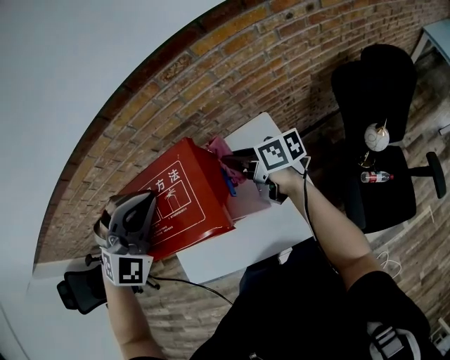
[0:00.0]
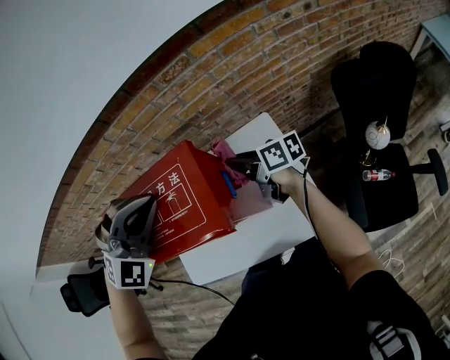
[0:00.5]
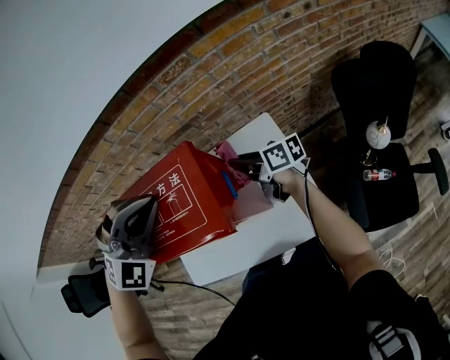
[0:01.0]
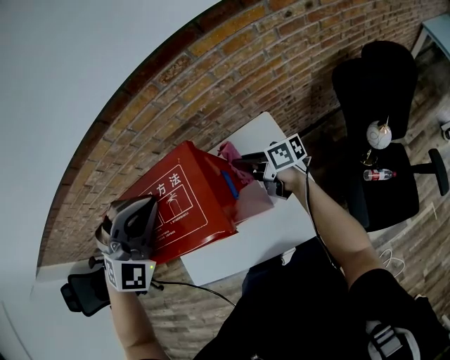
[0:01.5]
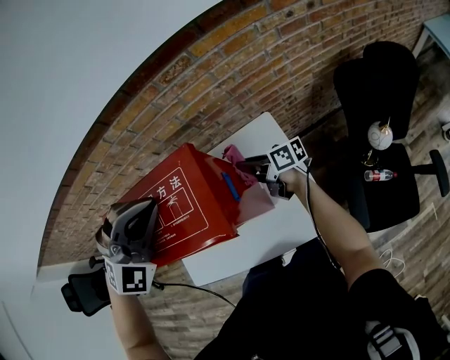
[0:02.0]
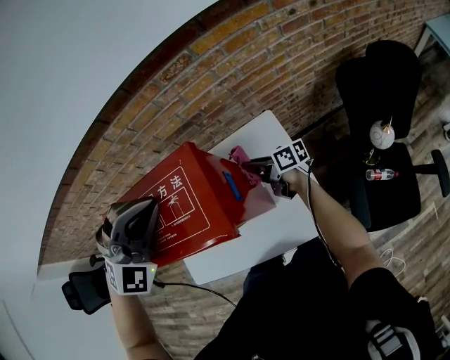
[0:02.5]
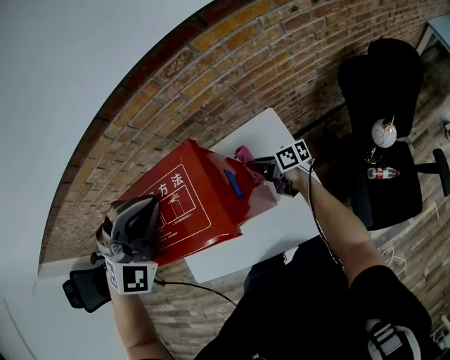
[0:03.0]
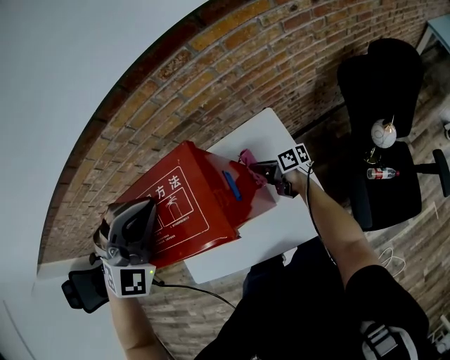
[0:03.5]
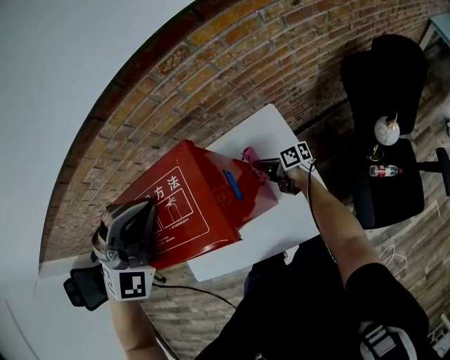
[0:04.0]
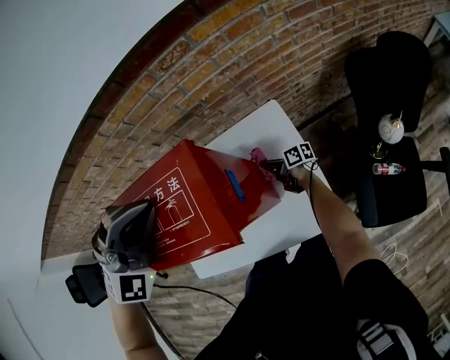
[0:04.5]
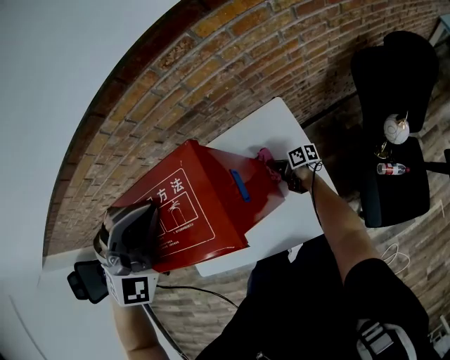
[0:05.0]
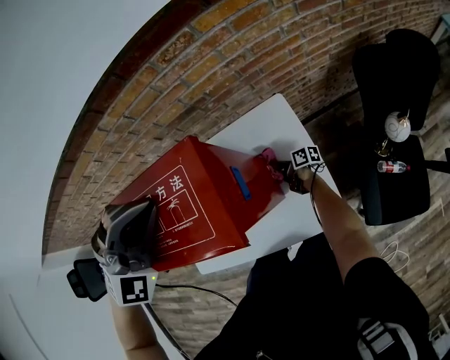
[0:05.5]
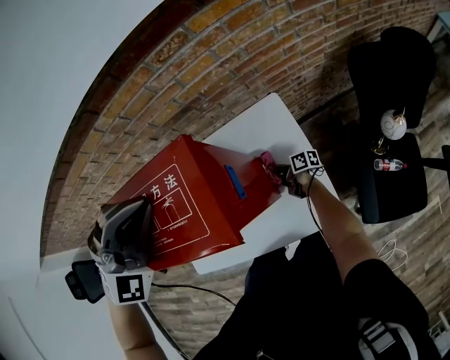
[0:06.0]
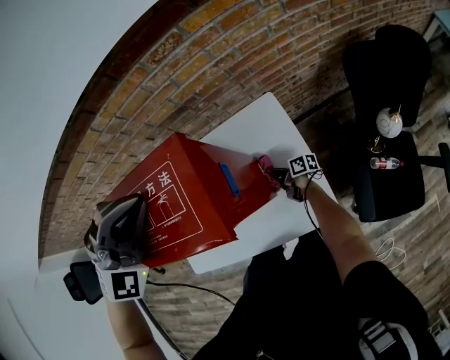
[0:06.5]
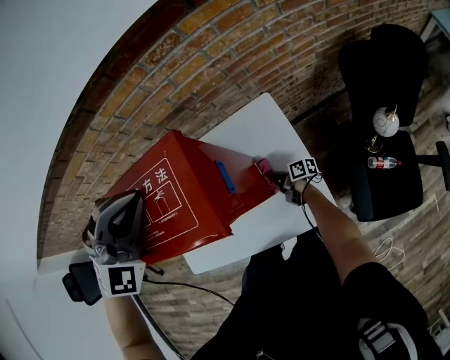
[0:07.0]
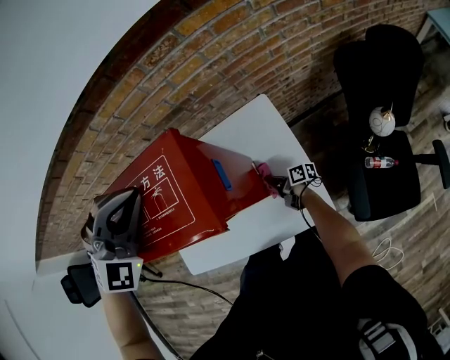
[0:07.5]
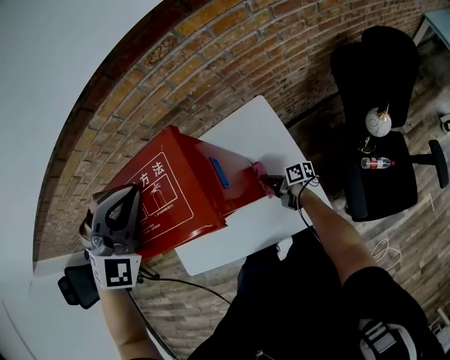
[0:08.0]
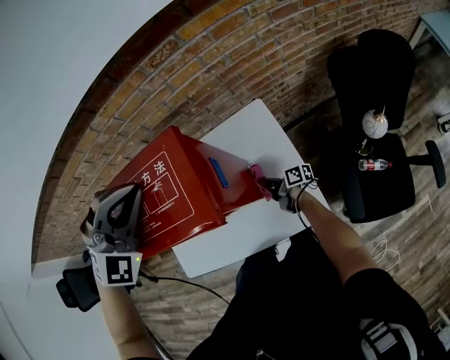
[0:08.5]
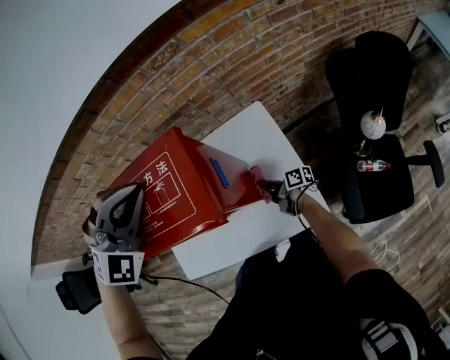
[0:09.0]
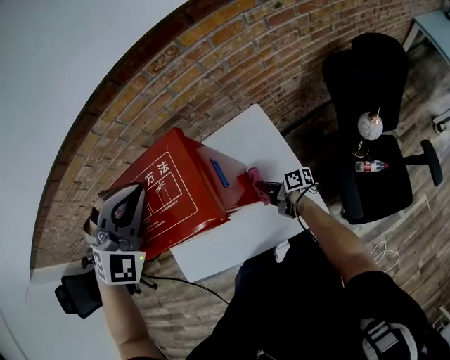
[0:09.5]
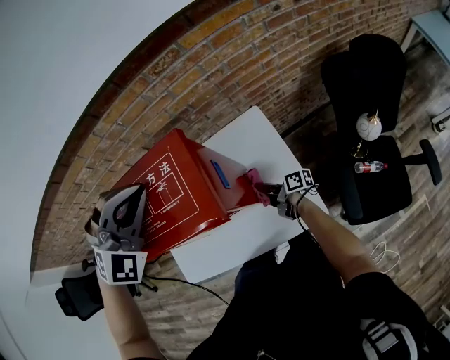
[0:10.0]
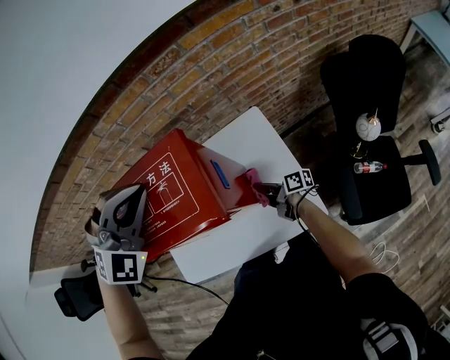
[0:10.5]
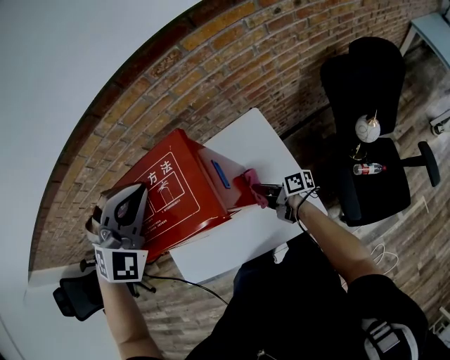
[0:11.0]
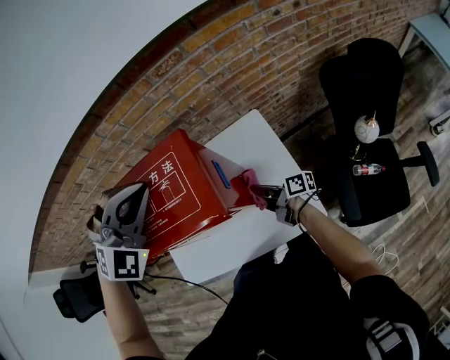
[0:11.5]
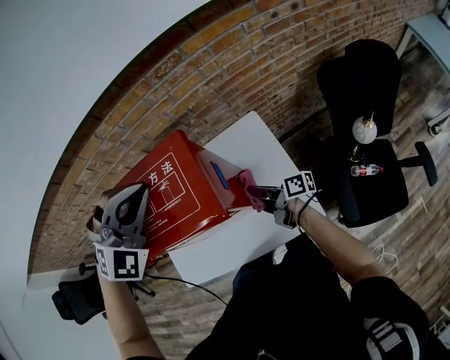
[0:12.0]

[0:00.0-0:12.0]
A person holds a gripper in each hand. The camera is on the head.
0:00.0 to 0:02.0: The right gripper shifts roughly 10 cm downward.
0:02.0 to 0:04.0: The right gripper is displaced downward by about 15 cm.
0:04.0 to 0:06.0: The right gripper shifts roughly 10 cm downward.
0:06.0 to 0:08.0: The right gripper shifts roughly 5 cm backward.
0:08.0 to 0:10.0: The right gripper goes approximately 5 cm upward.
0:10.0 to 0:12.0: The right gripper heads upward, covering roughly 10 cm.

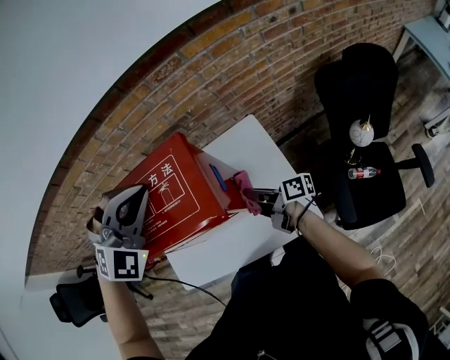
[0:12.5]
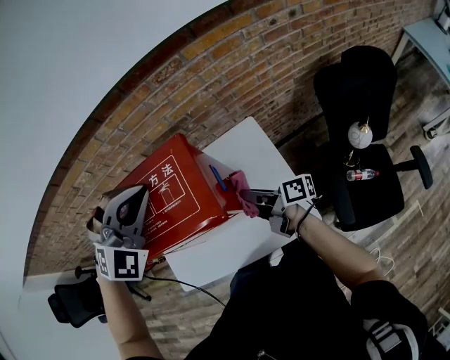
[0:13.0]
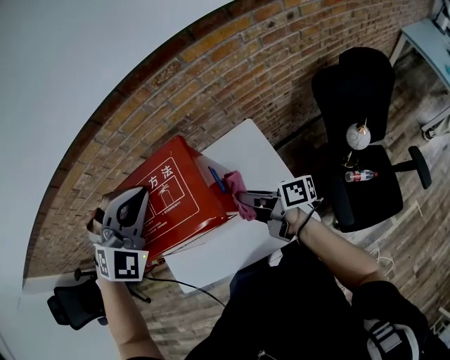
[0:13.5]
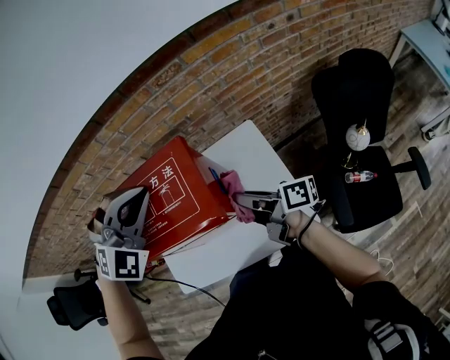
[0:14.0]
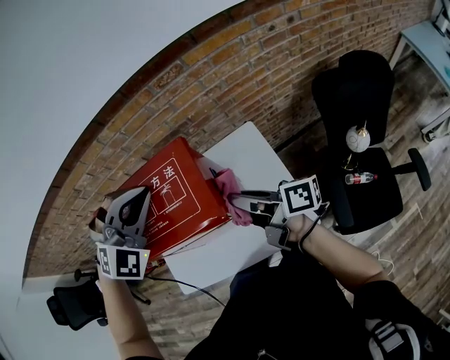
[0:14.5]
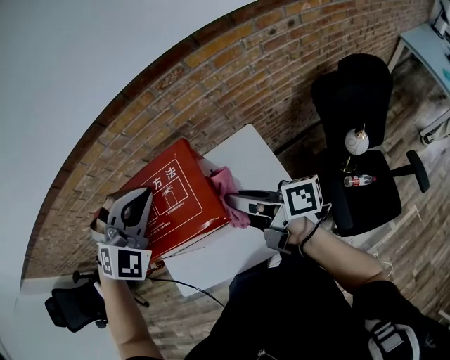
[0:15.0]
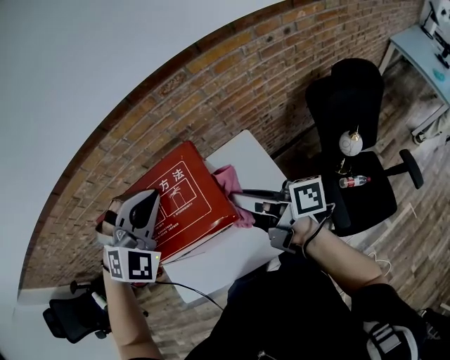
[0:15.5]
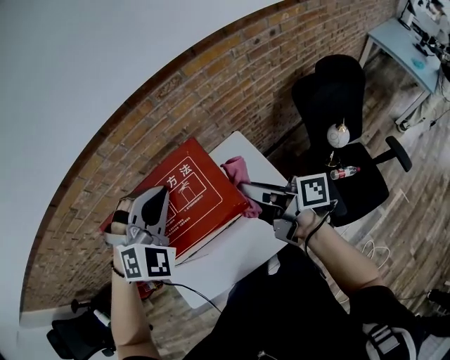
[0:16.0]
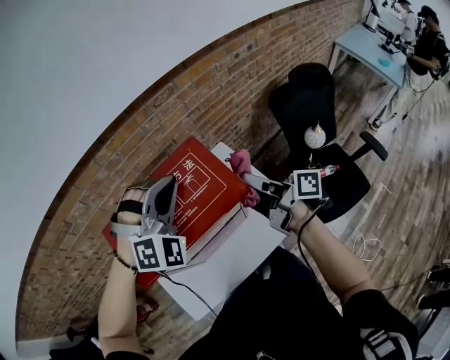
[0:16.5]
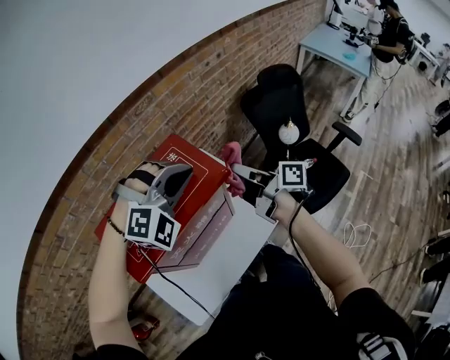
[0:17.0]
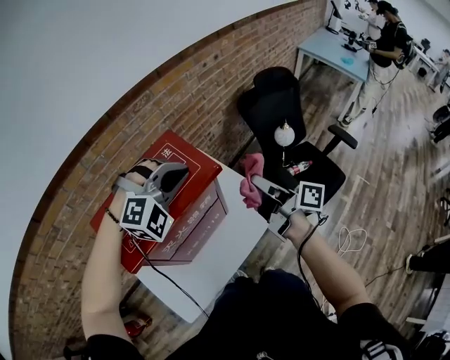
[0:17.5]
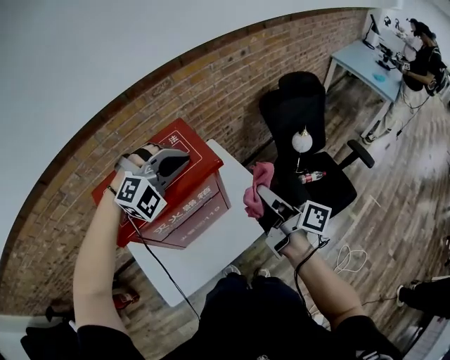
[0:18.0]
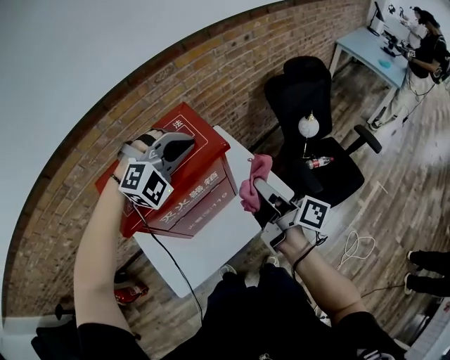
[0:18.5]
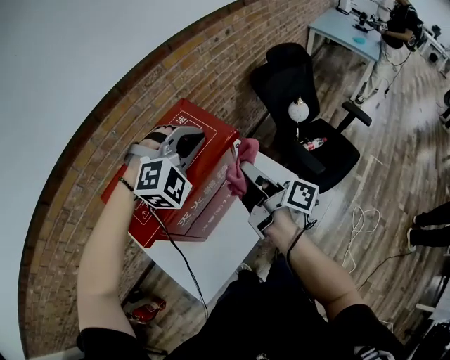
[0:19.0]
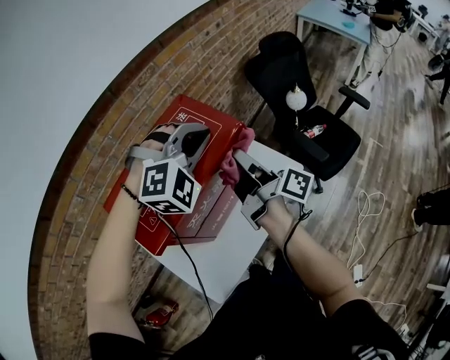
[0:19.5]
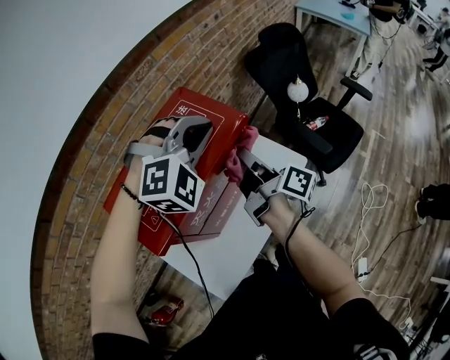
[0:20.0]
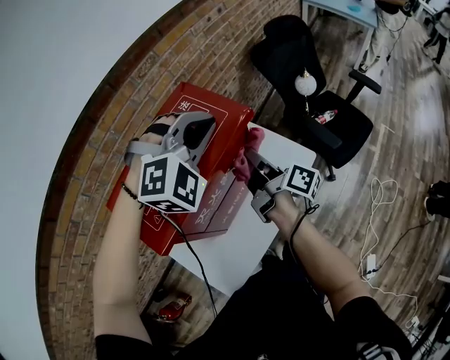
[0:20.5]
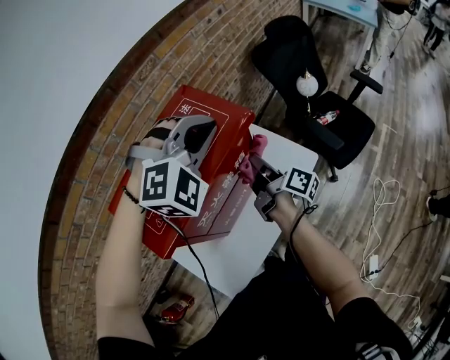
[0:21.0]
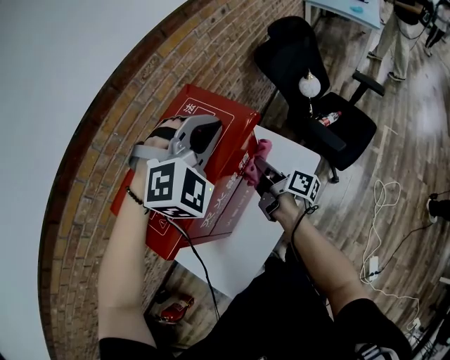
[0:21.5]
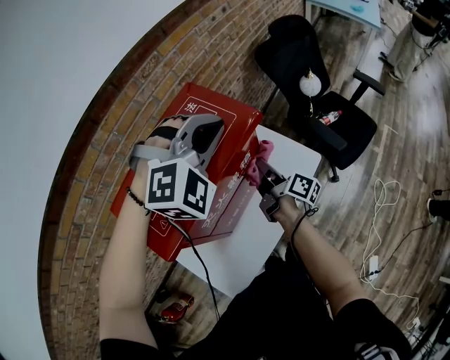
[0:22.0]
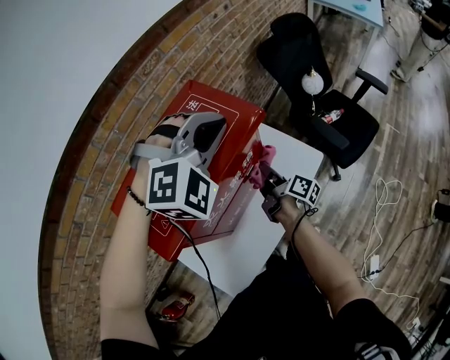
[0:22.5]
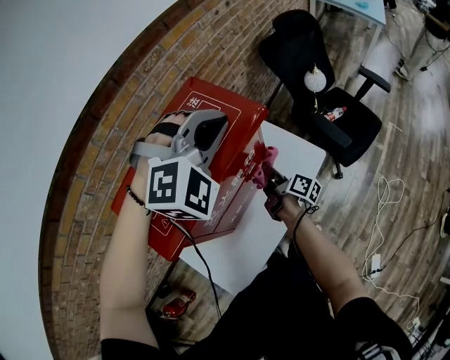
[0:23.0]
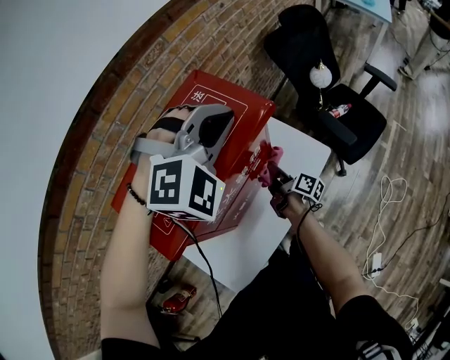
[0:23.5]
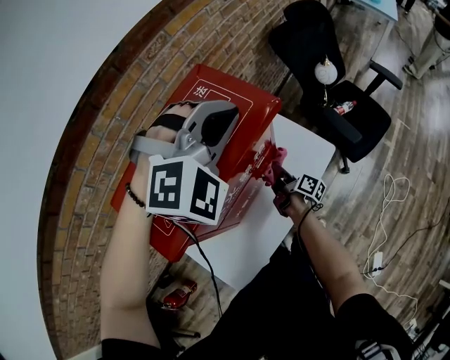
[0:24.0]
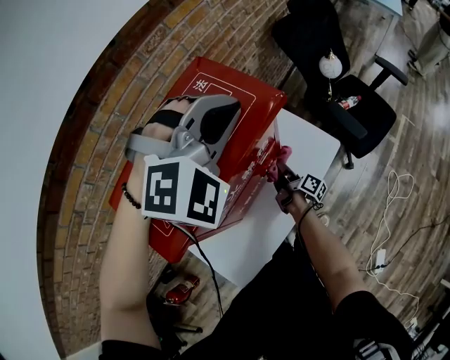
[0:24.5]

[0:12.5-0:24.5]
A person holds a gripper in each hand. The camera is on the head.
0:12.5 to 0:14.5: The right gripper moves upward, about 15 cm.
0:14.5 to 0:16.5: The right gripper is displaced upward by about 5 cm, and swivels some 30 degrees.
0:16.5 to 0:18.5: The right gripper shifts by roughly 15 cm, and changes its angle by roughly 20 degrees, while the left gripper ends up about 10 cm from where it was, and rotates roughly 30 degrees.
0:18.5 to 0:20.5: The right gripper heads to the left and downward, covering about 15 cm.
0:20.5 to 0:22.5: The right gripper goes roughly 15 cm downward.
0:22.5 to 0:24.5: The right gripper heads downward, covering approximately 15 cm.

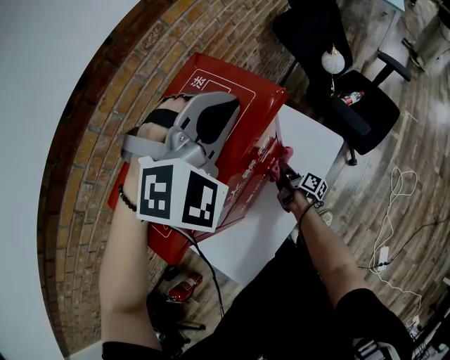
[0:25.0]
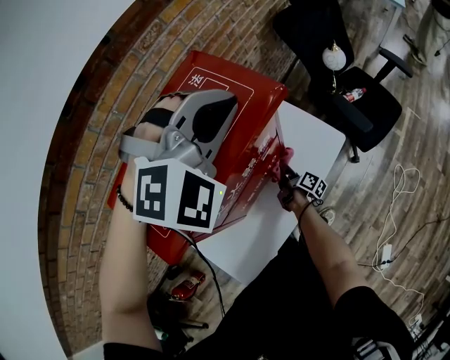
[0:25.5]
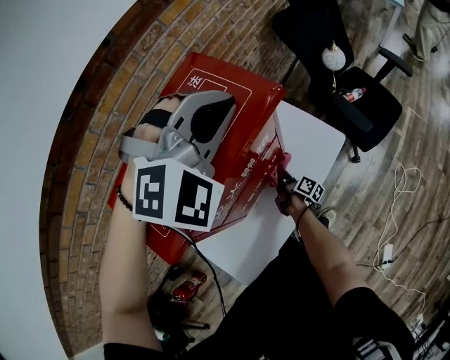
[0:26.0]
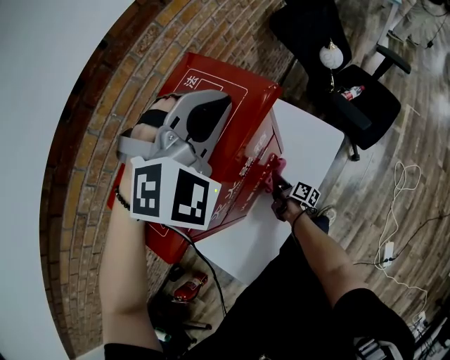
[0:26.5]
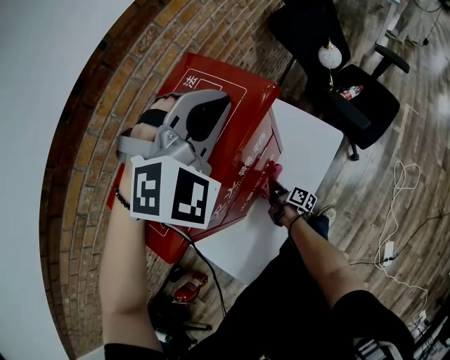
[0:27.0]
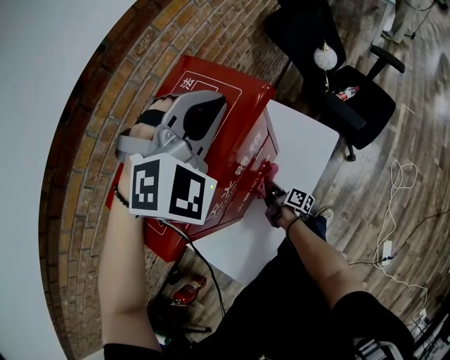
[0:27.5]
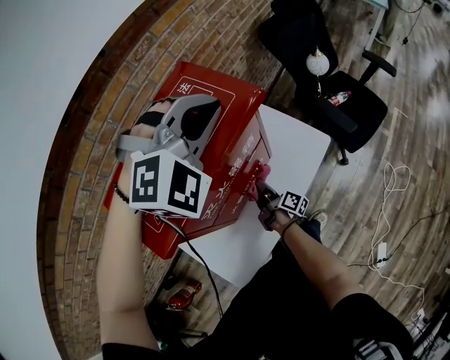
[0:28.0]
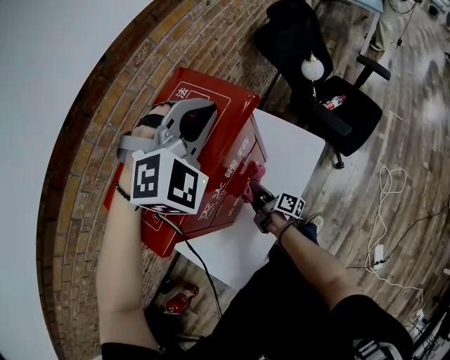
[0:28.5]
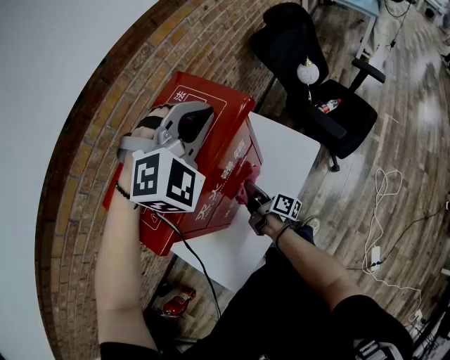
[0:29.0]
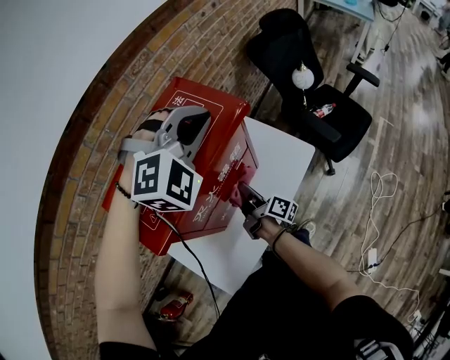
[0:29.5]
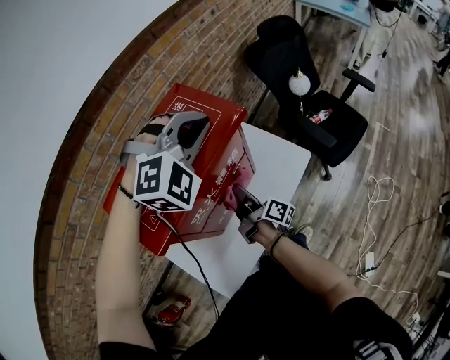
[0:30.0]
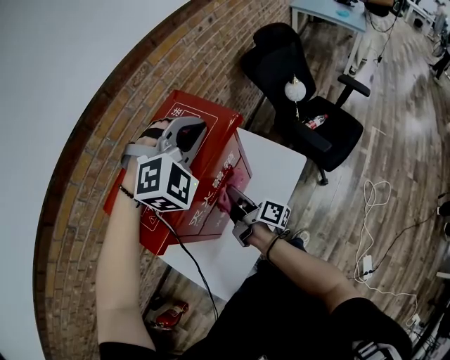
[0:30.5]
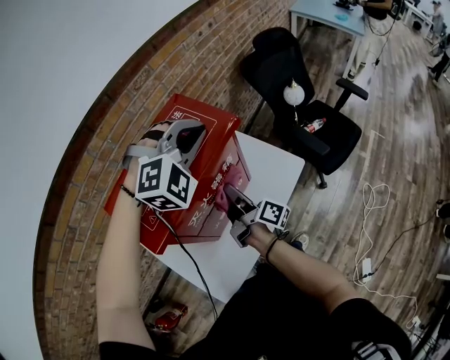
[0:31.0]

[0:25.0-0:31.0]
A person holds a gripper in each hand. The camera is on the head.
0:25.0 to 0:27.0: The right gripper travels backward and to the left by roughly 10 cm.
0:27.0 to 0:29.0: The right gripper travels upward by roughly 15 cm.
0:29.0 to 0:31.0: The right gripper moves upward, about 15 cm.
